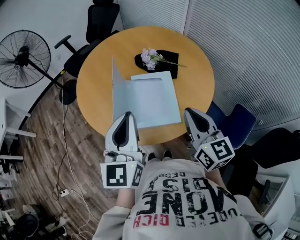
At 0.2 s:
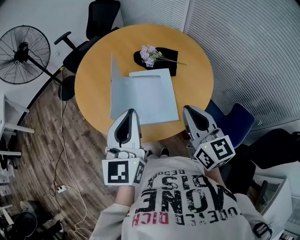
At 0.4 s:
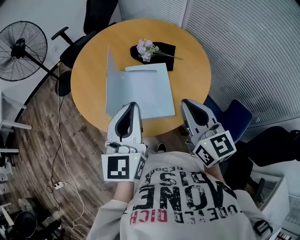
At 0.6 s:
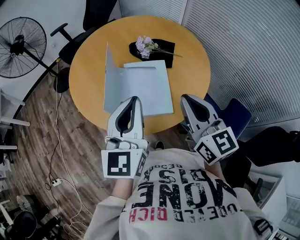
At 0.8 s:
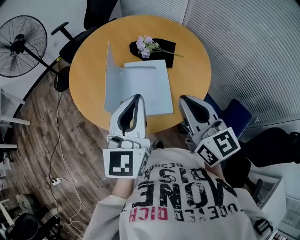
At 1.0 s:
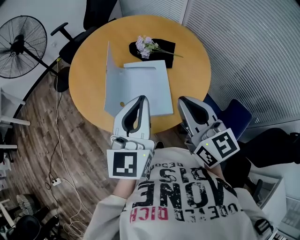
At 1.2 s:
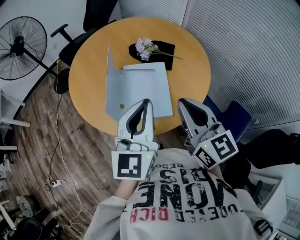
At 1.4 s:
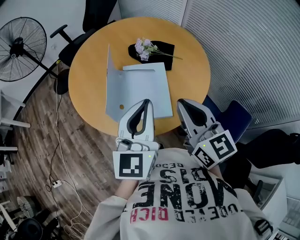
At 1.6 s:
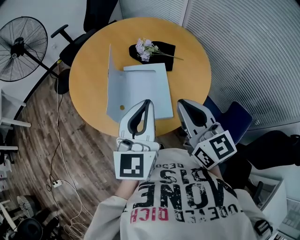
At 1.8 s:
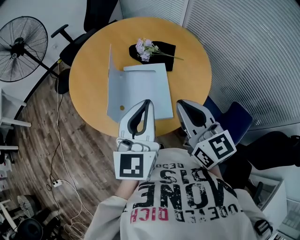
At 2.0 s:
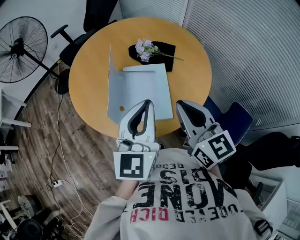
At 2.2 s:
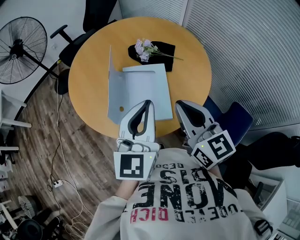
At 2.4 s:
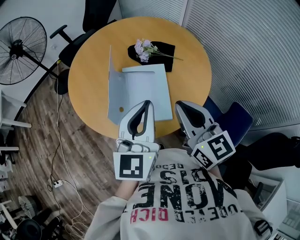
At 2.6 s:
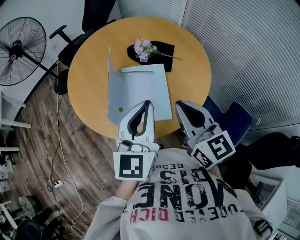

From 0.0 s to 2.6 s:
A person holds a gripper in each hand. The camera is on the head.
From 0.0 s to 1.2 s: The left gripper travels to the right by some 10 cm.
From 1.2 s to 2.6 s: The grippers move only a little.

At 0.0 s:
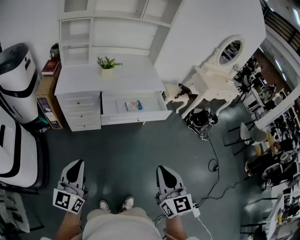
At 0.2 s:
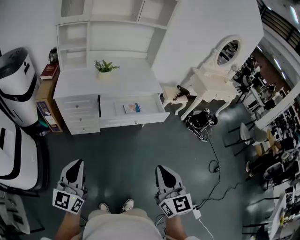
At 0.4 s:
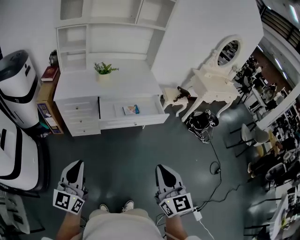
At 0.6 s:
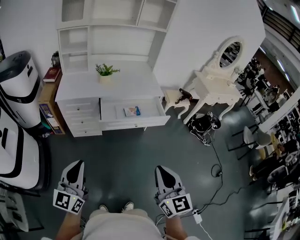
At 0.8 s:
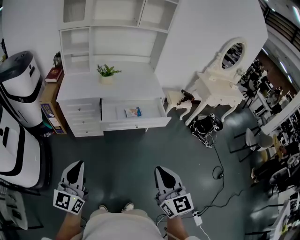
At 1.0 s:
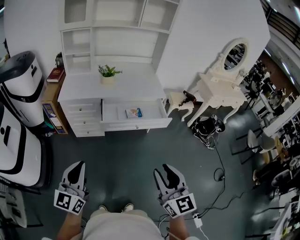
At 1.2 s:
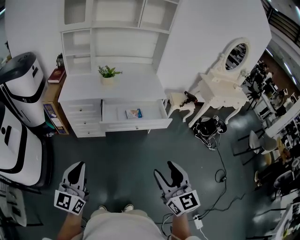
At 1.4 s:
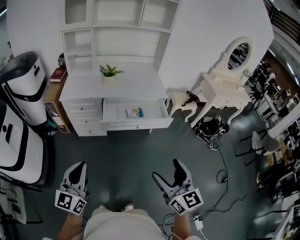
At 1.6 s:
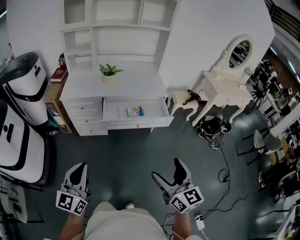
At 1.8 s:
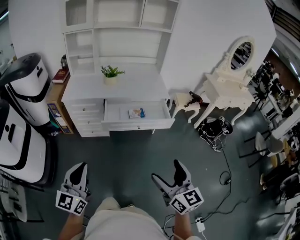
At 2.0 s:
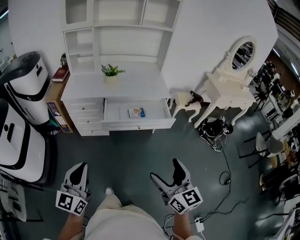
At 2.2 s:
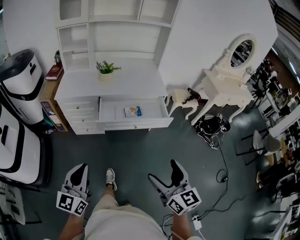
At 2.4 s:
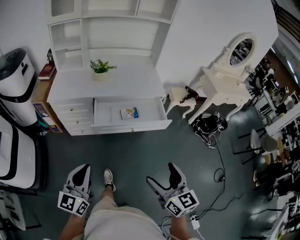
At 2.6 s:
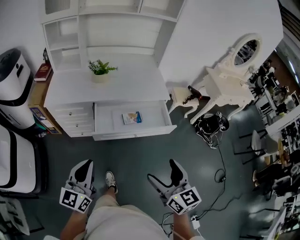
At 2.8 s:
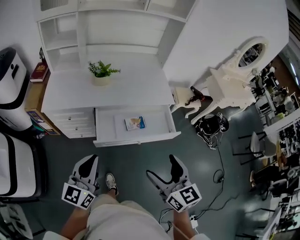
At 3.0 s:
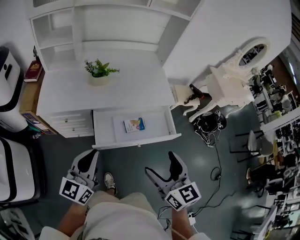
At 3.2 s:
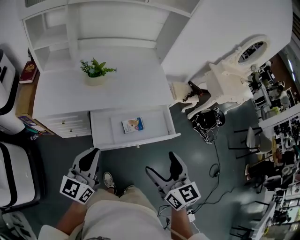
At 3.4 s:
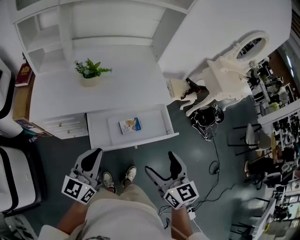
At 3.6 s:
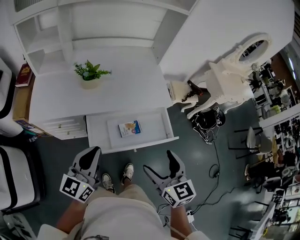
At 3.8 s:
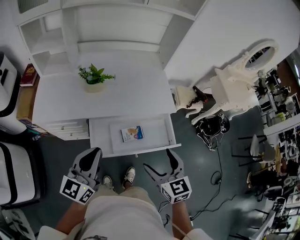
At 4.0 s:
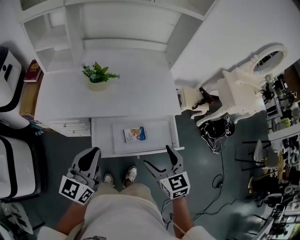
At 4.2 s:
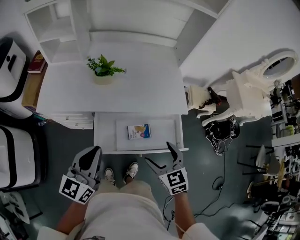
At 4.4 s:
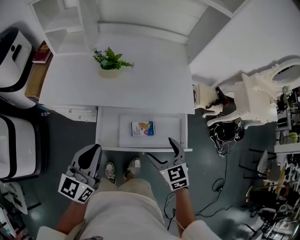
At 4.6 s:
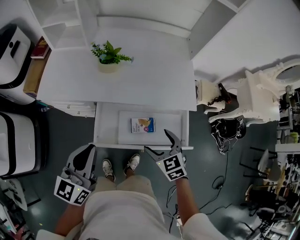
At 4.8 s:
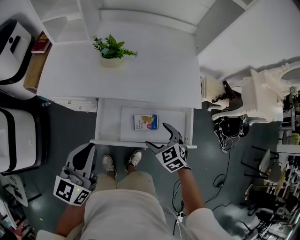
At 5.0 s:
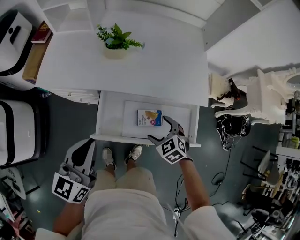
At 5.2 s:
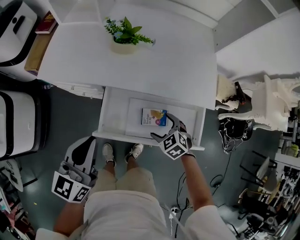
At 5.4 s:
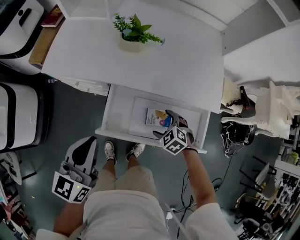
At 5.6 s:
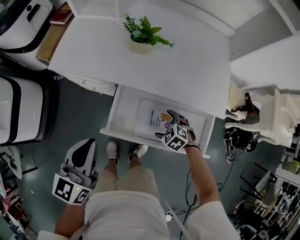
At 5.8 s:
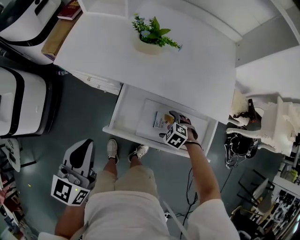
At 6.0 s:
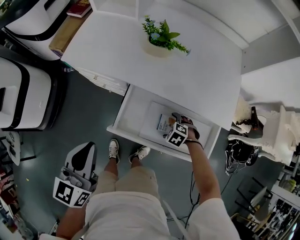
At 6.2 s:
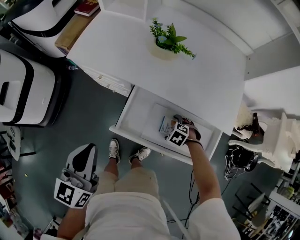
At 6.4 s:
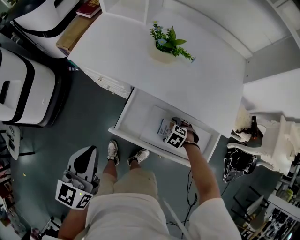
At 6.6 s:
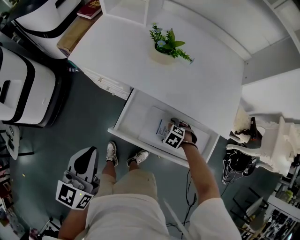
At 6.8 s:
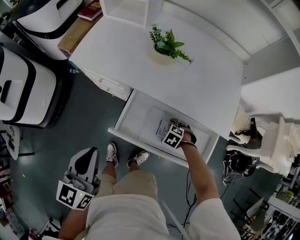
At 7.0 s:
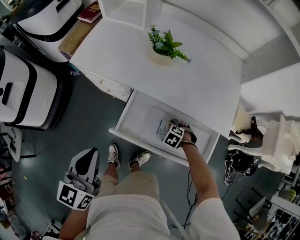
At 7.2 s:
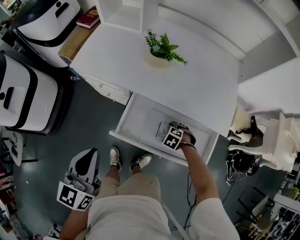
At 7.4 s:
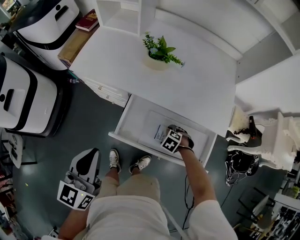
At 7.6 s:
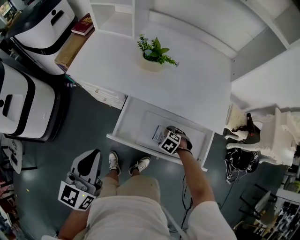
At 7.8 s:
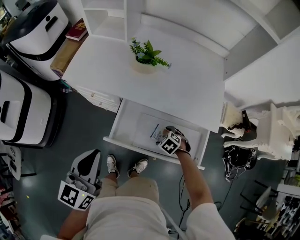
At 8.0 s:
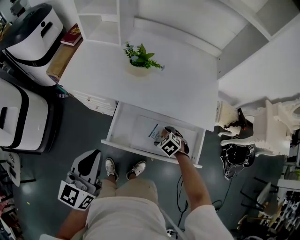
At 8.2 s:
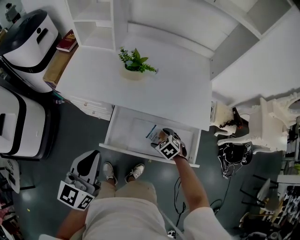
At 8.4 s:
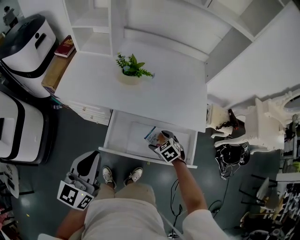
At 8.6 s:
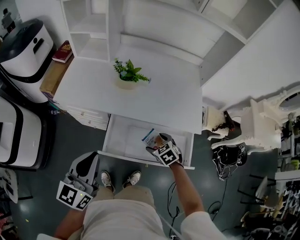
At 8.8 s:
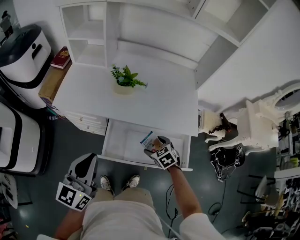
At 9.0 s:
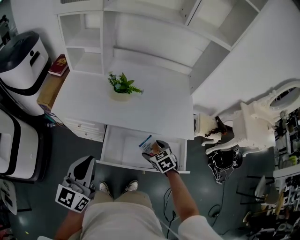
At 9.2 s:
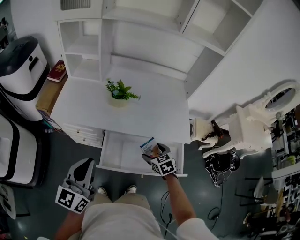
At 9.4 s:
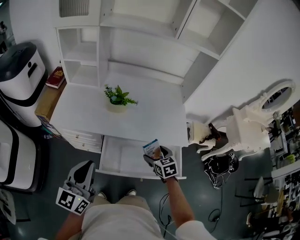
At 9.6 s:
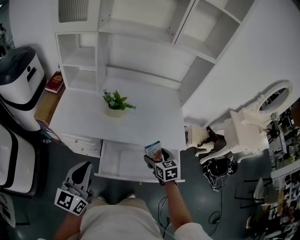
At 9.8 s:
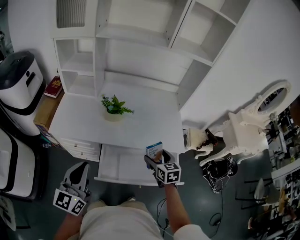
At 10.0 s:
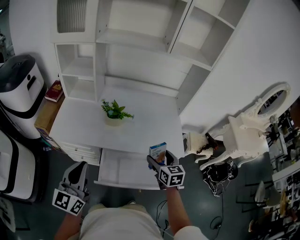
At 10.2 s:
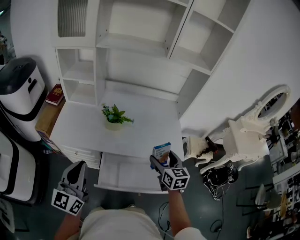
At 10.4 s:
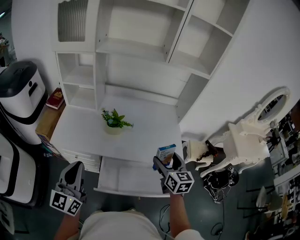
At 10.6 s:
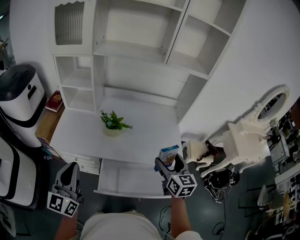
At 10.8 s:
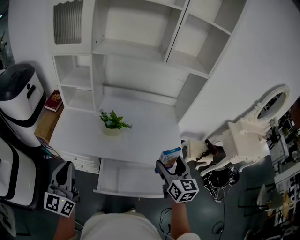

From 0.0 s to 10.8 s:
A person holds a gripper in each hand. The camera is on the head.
From 0.0 s to 1.6 s: Both grippers travel together to the right, about 10 cm. The right gripper opens up.
From 1.6 s to 3.0 s: The grippers both shift forward by some 35 cm.
From 3.0 s to 4.6 s: The left gripper moves forward, about 10 cm. The right gripper travels forward and downward by about 30 cm, and rotates some 40 degrees.
From 4.6 s to 6.2 s: The left gripper moves approximately 10 cm, and swivels about 20 degrees. Meanwhile the right gripper goes about 25 cm downward, and points its fingers some 40 degrees further downward.
From 6.2 s to 7.8 s: The left gripper shifts by about 5 cm.
From 7.8 s to 9.2 s: The right gripper shifts roughly 20 cm upward, and swivels about 40 degrees. The left gripper travels upward by some 5 cm.
From 9.2 s to 10.8 s: The right gripper travels upward by approximately 25 cm, and points its fingers about 40 degrees further upward; the left gripper heads upward, to the left and forward, covering approximately 10 cm.

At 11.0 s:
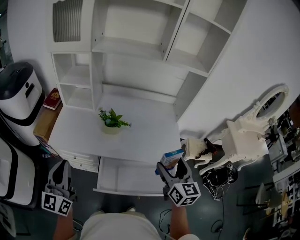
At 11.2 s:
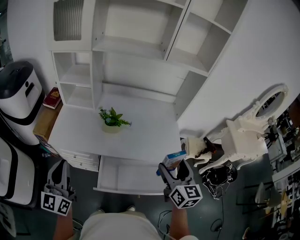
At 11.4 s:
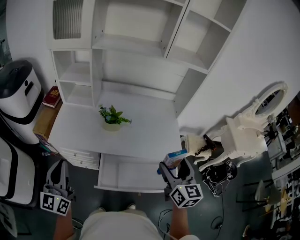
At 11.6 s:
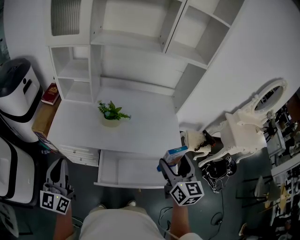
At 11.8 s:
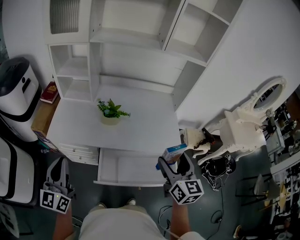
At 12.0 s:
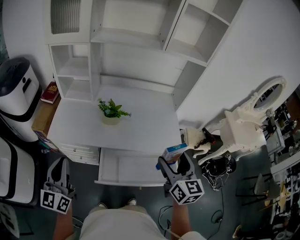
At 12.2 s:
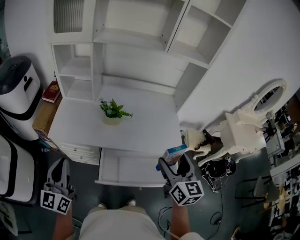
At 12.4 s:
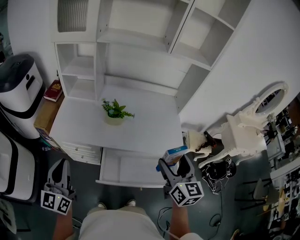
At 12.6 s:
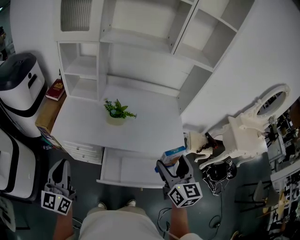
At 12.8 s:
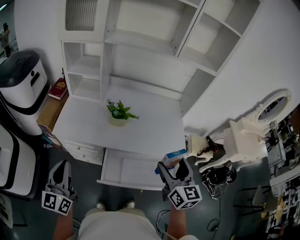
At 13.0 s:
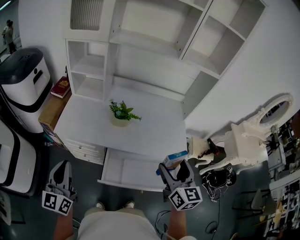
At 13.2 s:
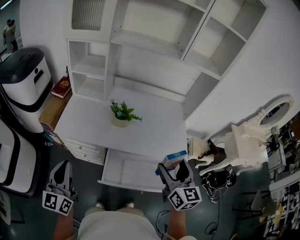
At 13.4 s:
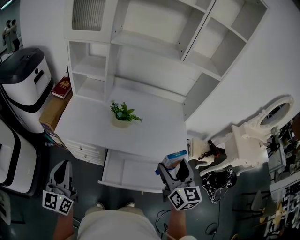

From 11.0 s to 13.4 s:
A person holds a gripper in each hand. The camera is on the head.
From 11.0 s to 12.2 s: The grippers stay close to where they were, moving slightly.
From 12.2 s to 13.4 s: The grippers make only small movements.

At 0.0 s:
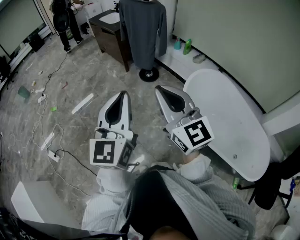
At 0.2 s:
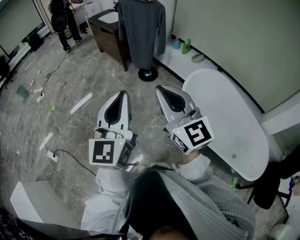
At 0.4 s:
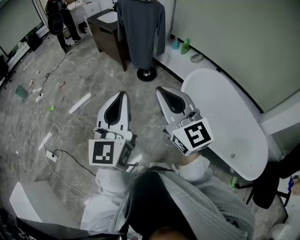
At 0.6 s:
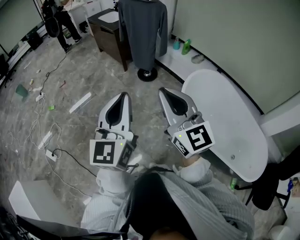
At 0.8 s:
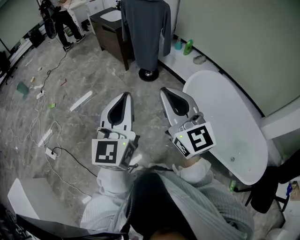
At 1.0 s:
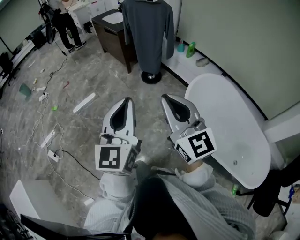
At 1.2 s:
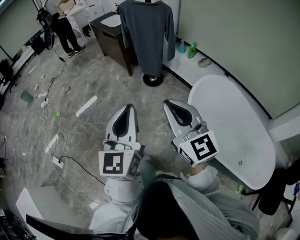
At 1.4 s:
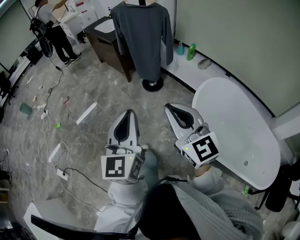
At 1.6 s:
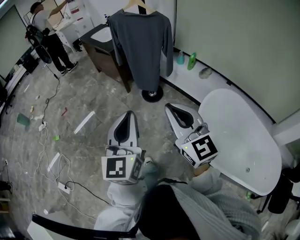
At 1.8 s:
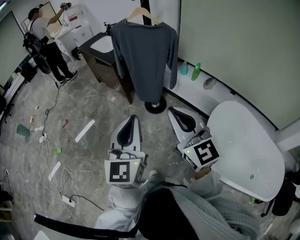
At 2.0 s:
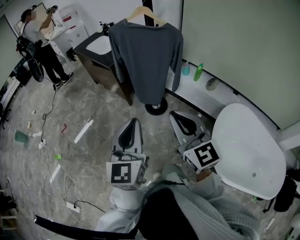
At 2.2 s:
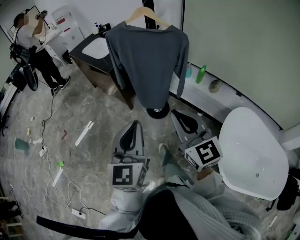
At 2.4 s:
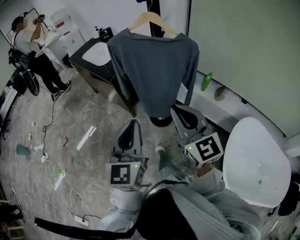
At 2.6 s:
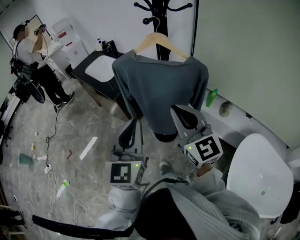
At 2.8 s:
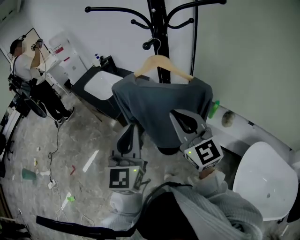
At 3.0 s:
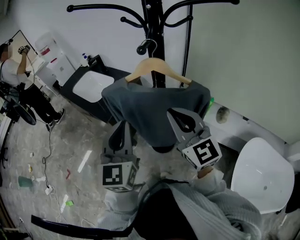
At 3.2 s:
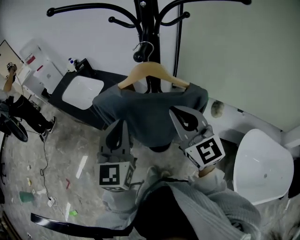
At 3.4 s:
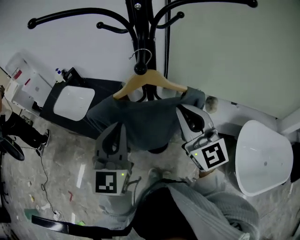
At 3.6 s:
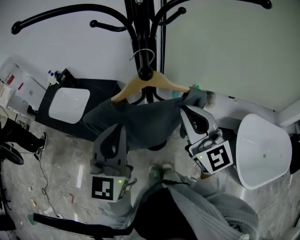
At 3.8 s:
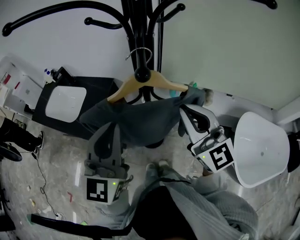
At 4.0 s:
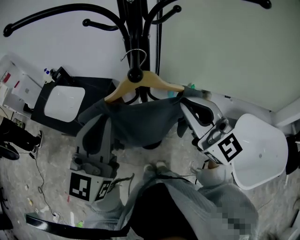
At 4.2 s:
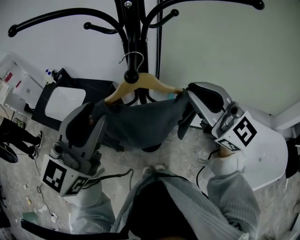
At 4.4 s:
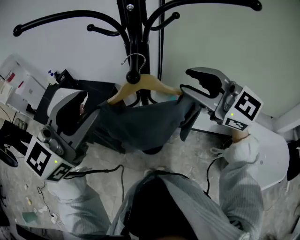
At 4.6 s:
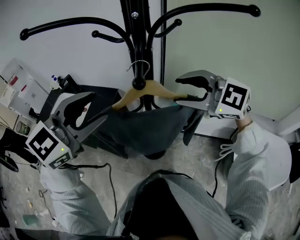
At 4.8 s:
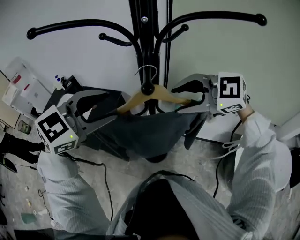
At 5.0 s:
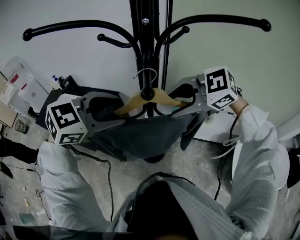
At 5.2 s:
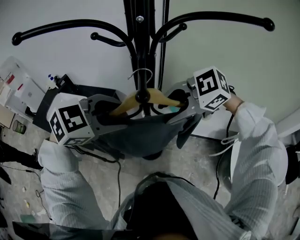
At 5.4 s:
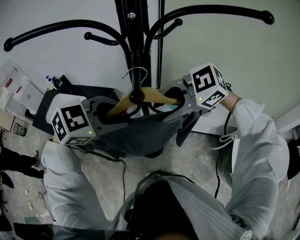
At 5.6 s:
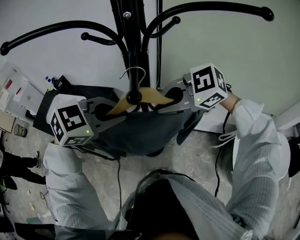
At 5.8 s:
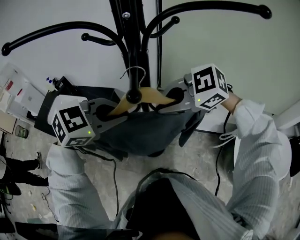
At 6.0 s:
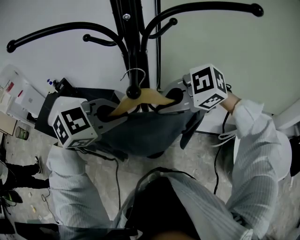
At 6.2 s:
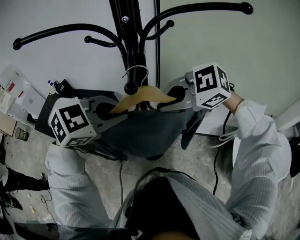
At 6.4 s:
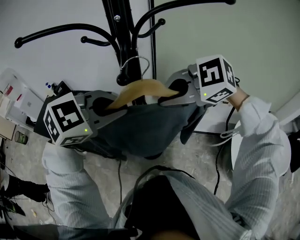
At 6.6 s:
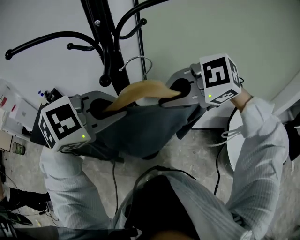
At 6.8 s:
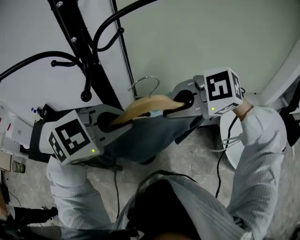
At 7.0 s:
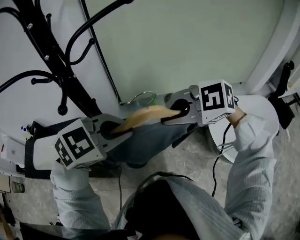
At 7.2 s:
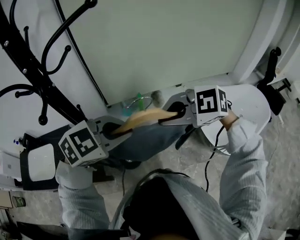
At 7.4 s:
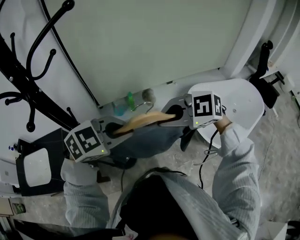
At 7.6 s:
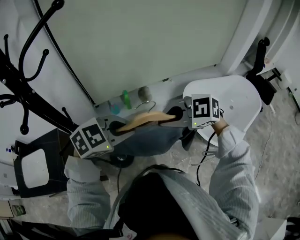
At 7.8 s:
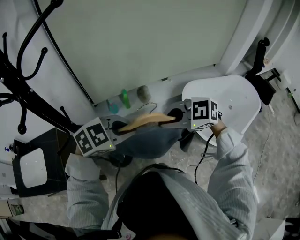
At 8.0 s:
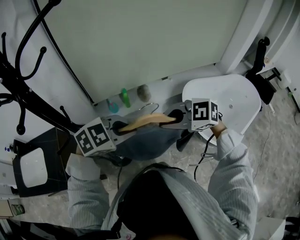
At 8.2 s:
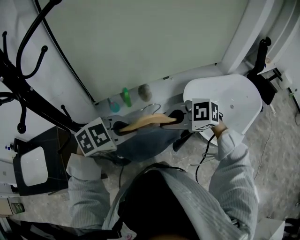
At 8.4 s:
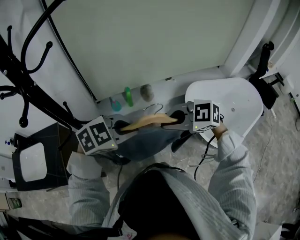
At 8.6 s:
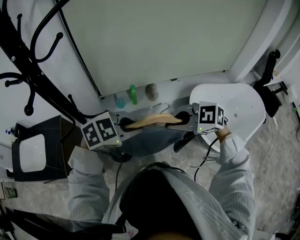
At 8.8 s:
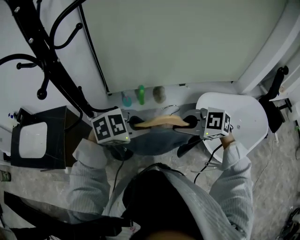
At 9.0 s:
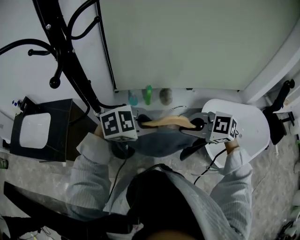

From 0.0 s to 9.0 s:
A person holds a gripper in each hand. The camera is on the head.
From 0.0 s to 1.6 s: The grippers both shift forward by about 25 cm.
From 1.6 s to 3.0 s: The two grippers travel together, forward, some 70 cm.
From 3.0 s to 4.4 s: The left gripper heads forward and upward, covering about 20 cm, rotates some 50 degrees, and opens; the right gripper moves forward, upward and to the right, roughly 15 cm, and opens its fingers.
From 4.4 s to 6.0 s: Both grippers travel together downward, approximately 10 cm. The right gripper tilts its fingers approximately 30 degrees downward, and closes its fingers. Meanwhile the left gripper points its fingers roughly 40 degrees further downward, and closes.
From 6.0 s to 7.6 s: The right gripper ends up approximately 30 cm from where it was, and changes its angle by about 40 degrees. Meanwhile the left gripper shifts by some 30 cm, and swivels about 40 degrees.
From 7.6 s to 9.0 s: There are only small adjustments of the grippers.
